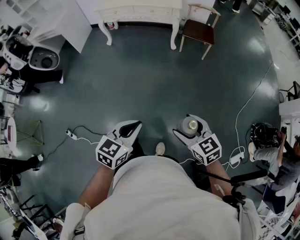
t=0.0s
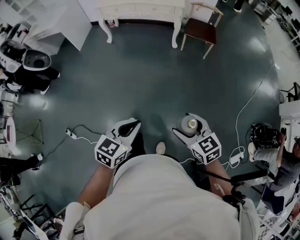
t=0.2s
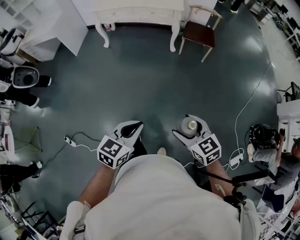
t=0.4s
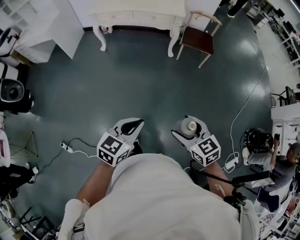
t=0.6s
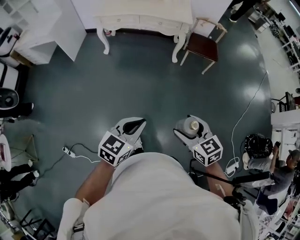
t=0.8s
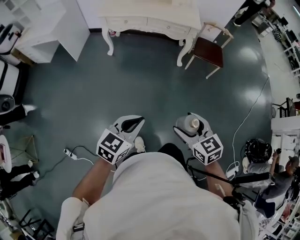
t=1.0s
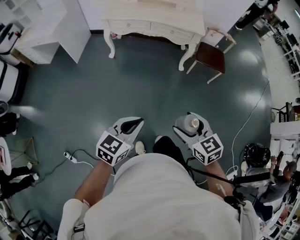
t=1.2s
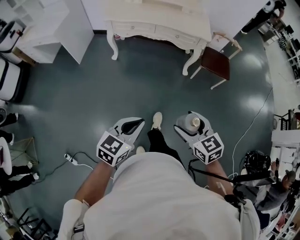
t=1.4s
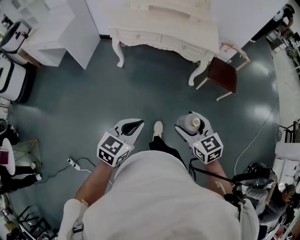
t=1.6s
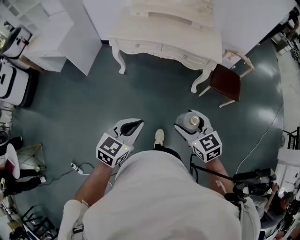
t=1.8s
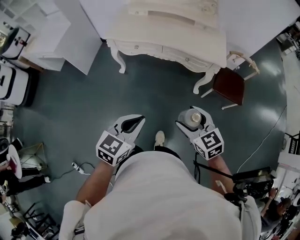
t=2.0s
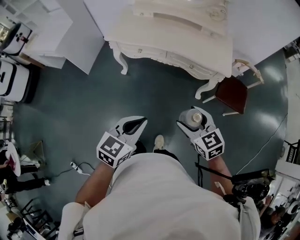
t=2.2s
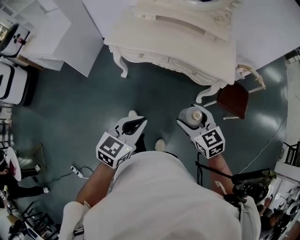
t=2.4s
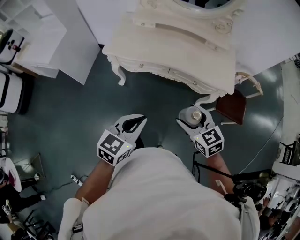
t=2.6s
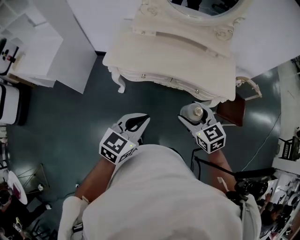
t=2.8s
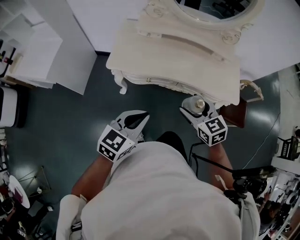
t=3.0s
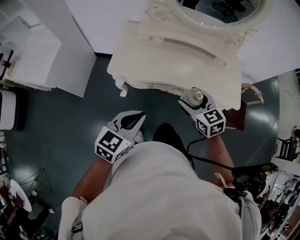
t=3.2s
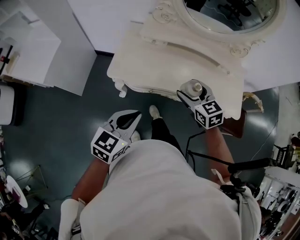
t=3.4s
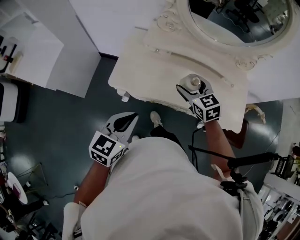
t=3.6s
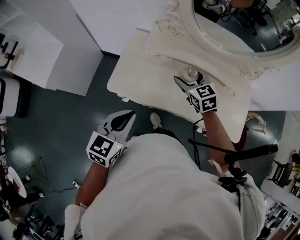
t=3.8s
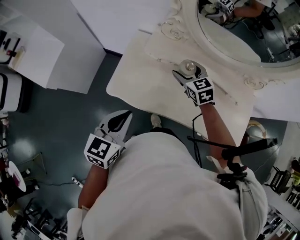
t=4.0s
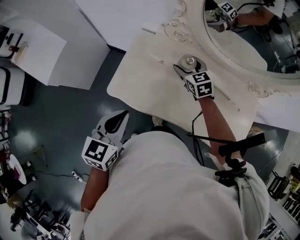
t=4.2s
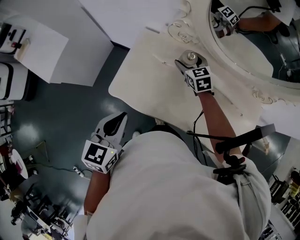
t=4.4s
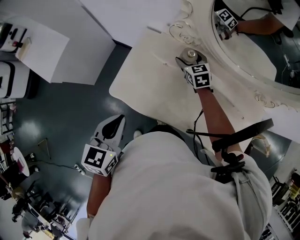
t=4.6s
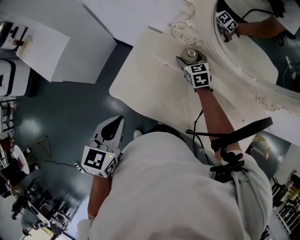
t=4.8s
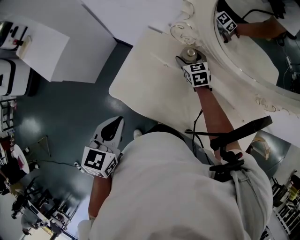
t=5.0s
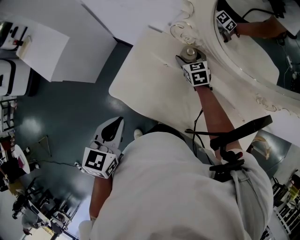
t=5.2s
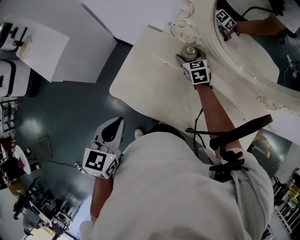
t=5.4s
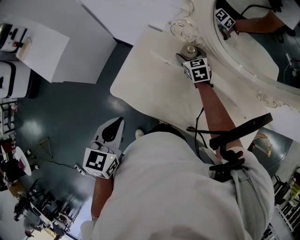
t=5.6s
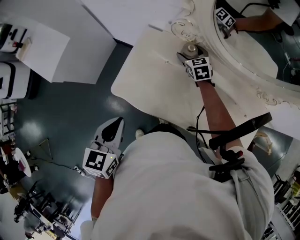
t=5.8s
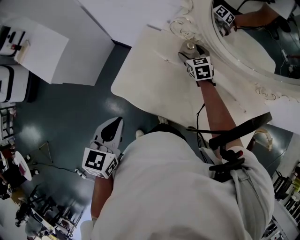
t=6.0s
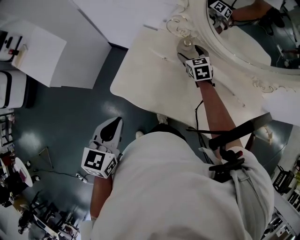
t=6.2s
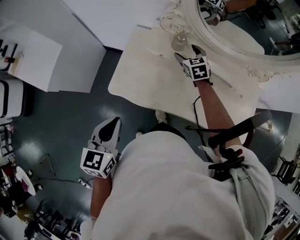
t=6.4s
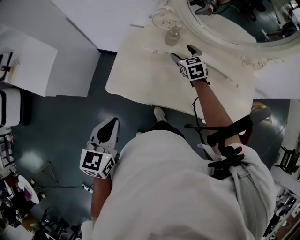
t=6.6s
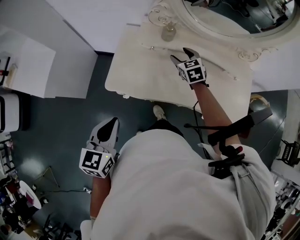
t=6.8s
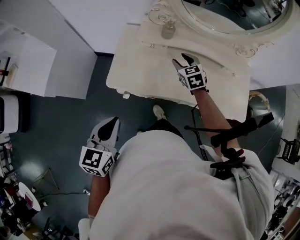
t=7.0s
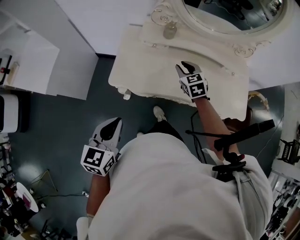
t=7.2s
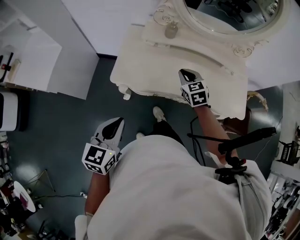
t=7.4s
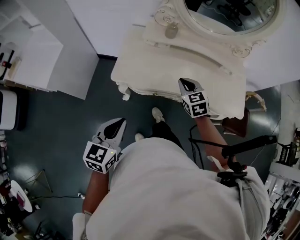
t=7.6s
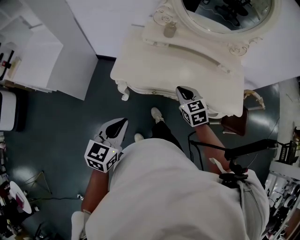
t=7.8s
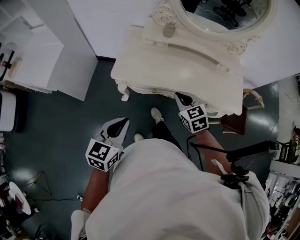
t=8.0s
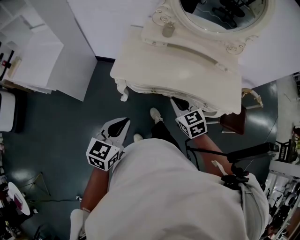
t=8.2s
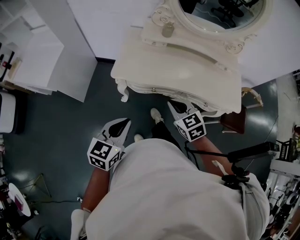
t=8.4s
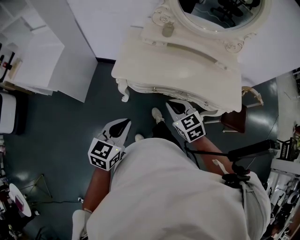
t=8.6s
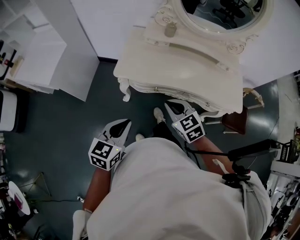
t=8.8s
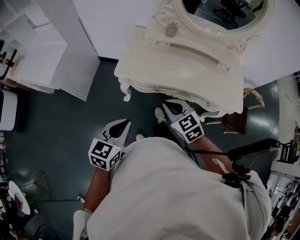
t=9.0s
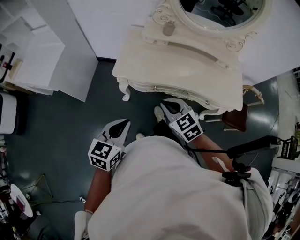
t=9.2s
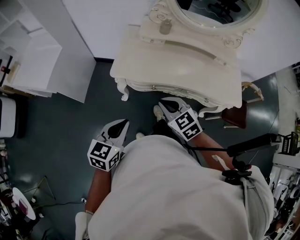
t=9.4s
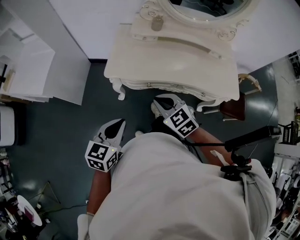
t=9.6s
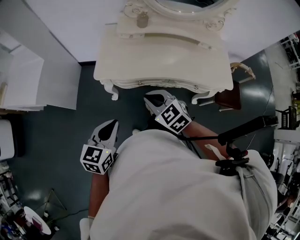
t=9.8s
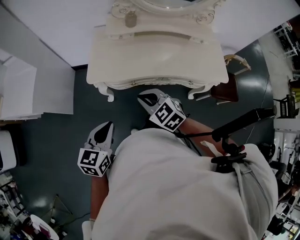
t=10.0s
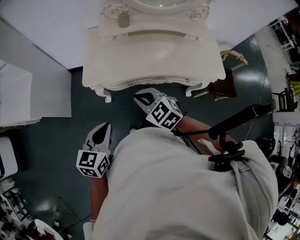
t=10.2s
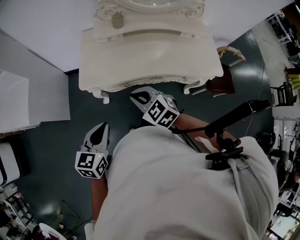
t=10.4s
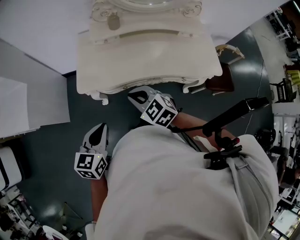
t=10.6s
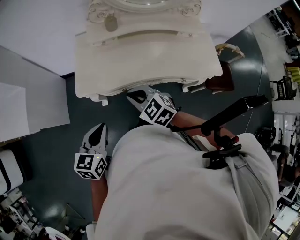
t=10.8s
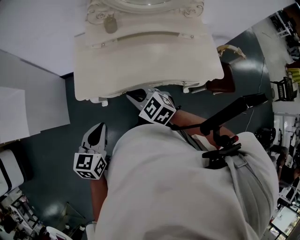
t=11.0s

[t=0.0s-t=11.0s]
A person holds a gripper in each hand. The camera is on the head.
t=0.0s to t=1.6s: Both grippers are carried forward and to the left, some 50 cm.
t=1.6s to t=3.2s: The two grippers travel together, forward, about 50 cm.
t=3.2s to t=4.8s: The right gripper heads forward, covering about 50 cm. Meanwhile the left gripper heads forward, covering approximately 30 cm, and rotates about 40 degrees.
t=4.8s to t=6.2s: The left gripper ends up approximately 5 cm from where it was.
t=6.2s to t=7.8s: The right gripper shifts roughly 40 cm backward, and closes up. The left gripper heads backward, covering approximately 20 cm, and turns by some 20 degrees.
t=7.8s to t=9.4s: The right gripper travels backward and to the left by roughly 15 cm.
t=9.4s to t=11.0s: Both grippers move forward, approximately 5 cm.

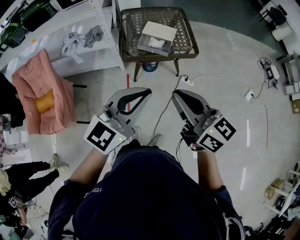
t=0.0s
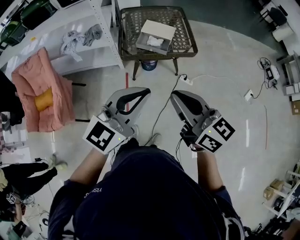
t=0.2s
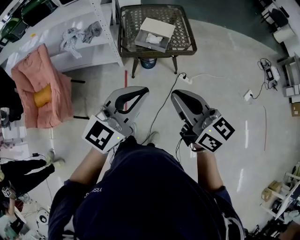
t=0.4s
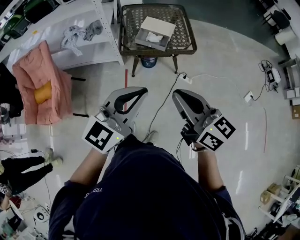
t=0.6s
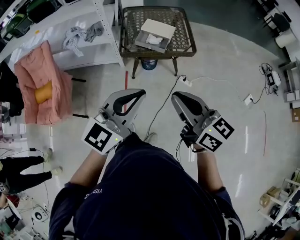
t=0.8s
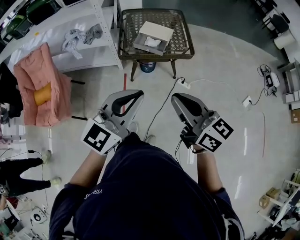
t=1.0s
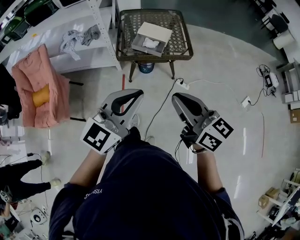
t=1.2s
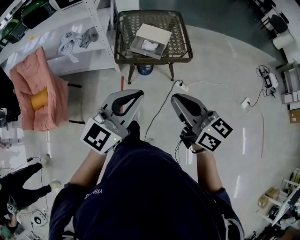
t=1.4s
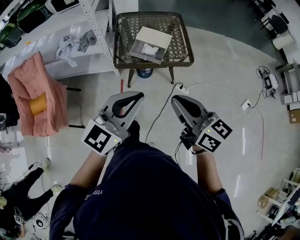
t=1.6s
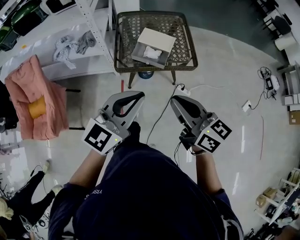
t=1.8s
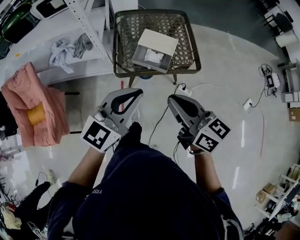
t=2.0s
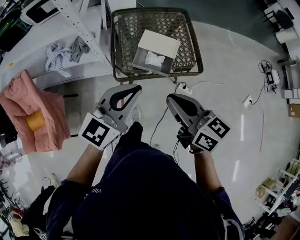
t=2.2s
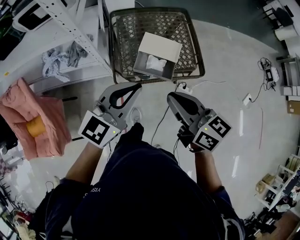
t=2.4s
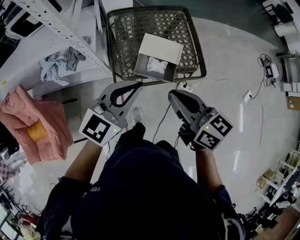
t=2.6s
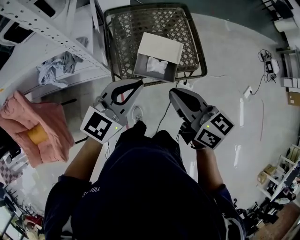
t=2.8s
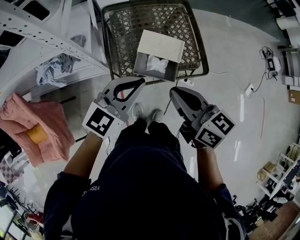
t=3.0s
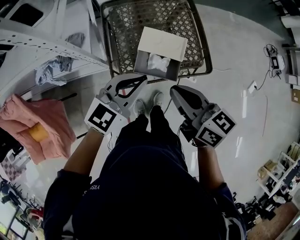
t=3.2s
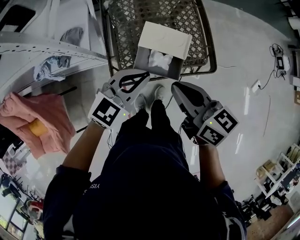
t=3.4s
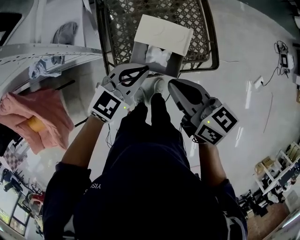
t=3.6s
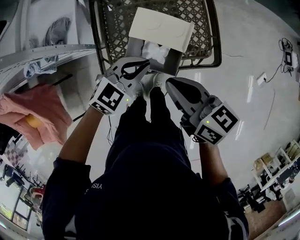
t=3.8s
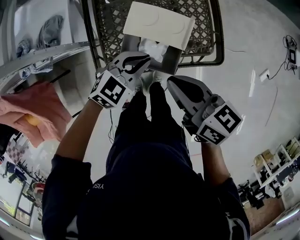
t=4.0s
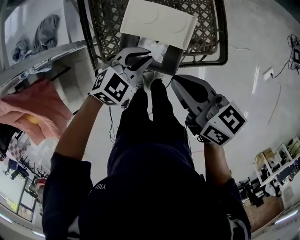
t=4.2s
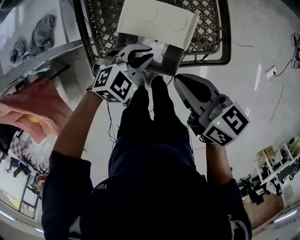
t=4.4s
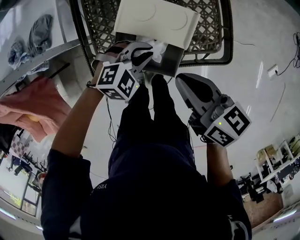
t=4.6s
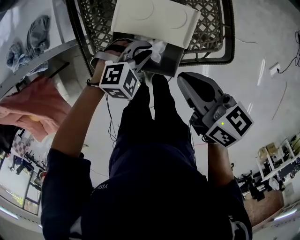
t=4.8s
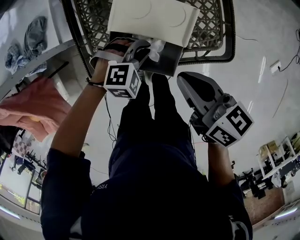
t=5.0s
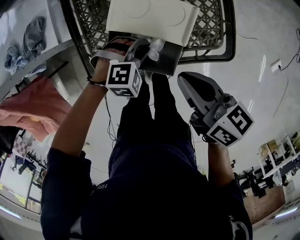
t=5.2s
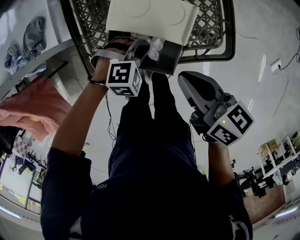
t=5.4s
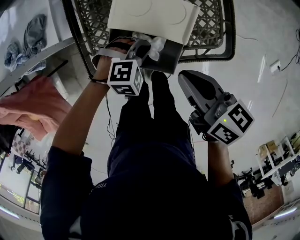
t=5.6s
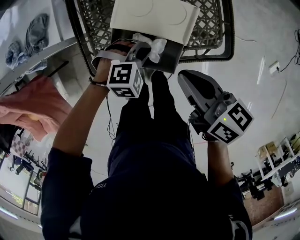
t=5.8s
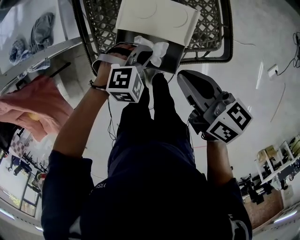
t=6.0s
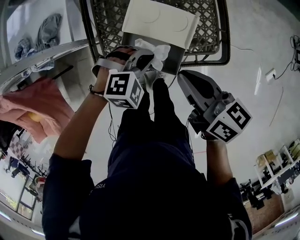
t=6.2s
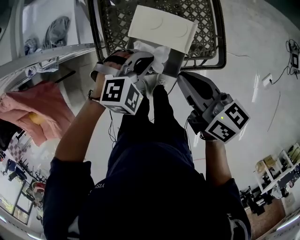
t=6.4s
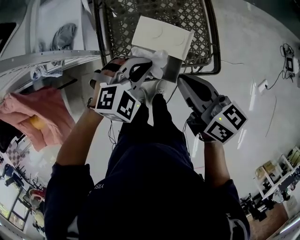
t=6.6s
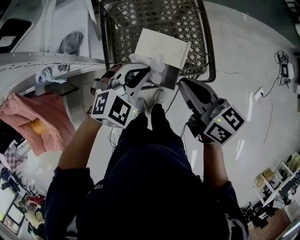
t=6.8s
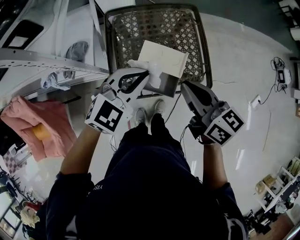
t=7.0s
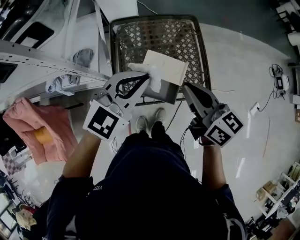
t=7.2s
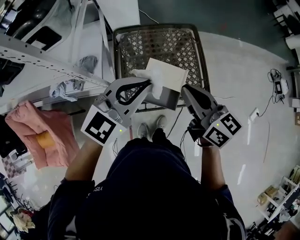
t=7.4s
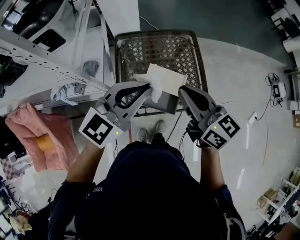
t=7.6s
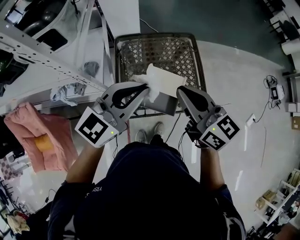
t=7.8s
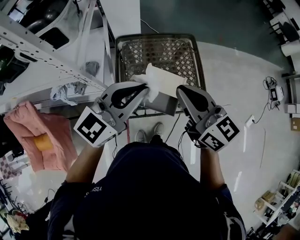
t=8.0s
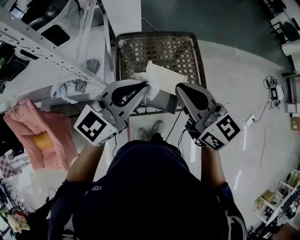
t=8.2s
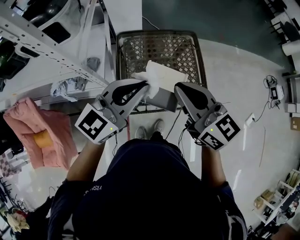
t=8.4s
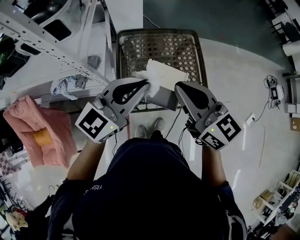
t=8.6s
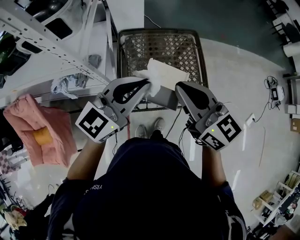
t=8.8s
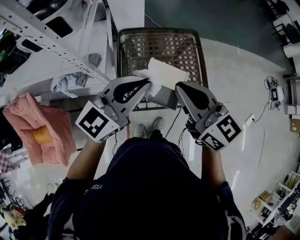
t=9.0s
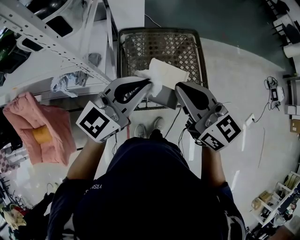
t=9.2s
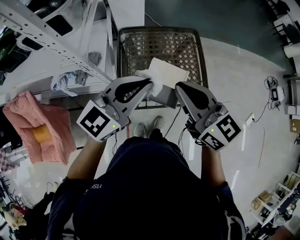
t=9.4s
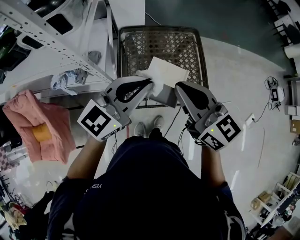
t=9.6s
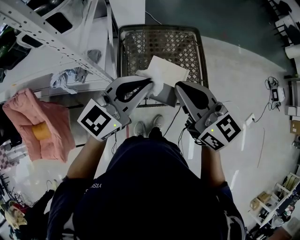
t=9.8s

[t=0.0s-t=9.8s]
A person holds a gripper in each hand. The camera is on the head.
t=0.0s to t=1.4s: The right gripper is displaced to the right by some 5 cm. The left gripper moves some 5 cm.
t=1.4s to t=2.8s: Both grippers travel together forward, about 35 cm.
t=2.8s to t=4.2s: Both grippers travel together downward and forward, approximately 25 cm. The left gripper points its fingers approximately 30 degrees further downward.
t=4.2s to t=5.6s: The left gripper travels downward by some 10 cm, and turns by approximately 30 degrees. The right gripper changes place by about 5 cm.
t=5.6s to t=7.0s: The left gripper goes approximately 35 cm upward, and tilts its fingers approximately 40 degrees upward. The right gripper heads upward, covering about 20 cm, and changes its angle by about 20 degrees.
t=7.0s to t=8.4s: The right gripper moves upward and to the left, approximately 15 cm, and swivels roughly 20 degrees; the left gripper travels upward by roughly 15 cm, and changes its angle by roughly 30 degrees.
t=8.4s to t=9.8s: The grippers stay close to where they were, moving slightly.

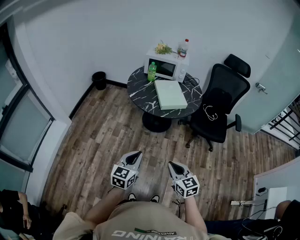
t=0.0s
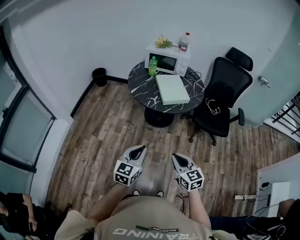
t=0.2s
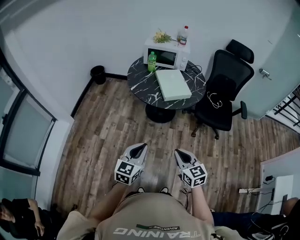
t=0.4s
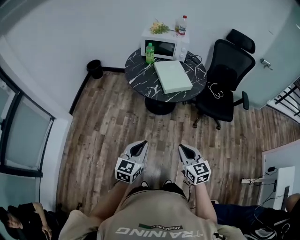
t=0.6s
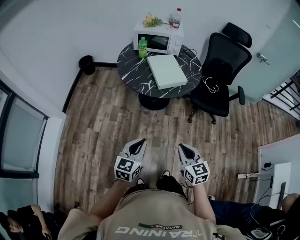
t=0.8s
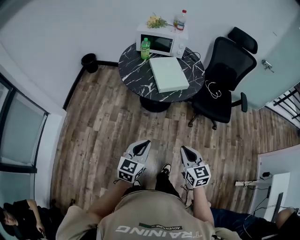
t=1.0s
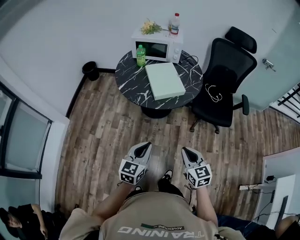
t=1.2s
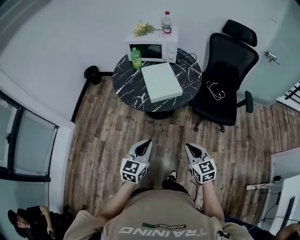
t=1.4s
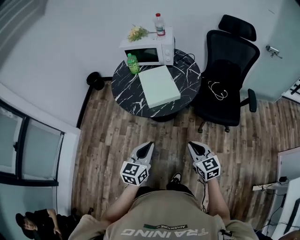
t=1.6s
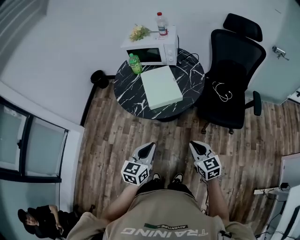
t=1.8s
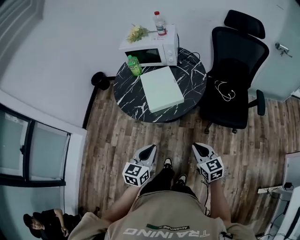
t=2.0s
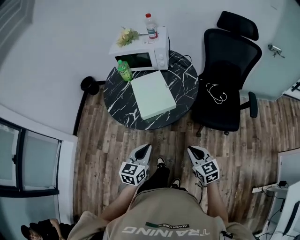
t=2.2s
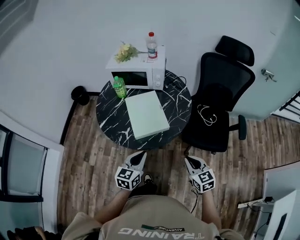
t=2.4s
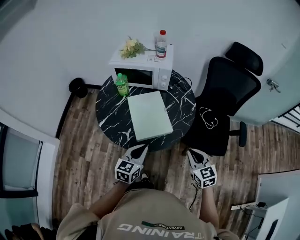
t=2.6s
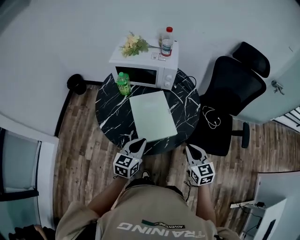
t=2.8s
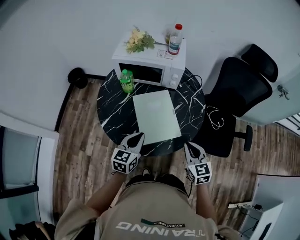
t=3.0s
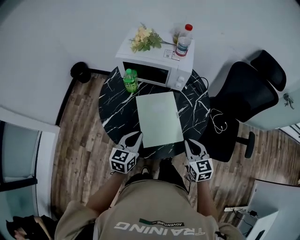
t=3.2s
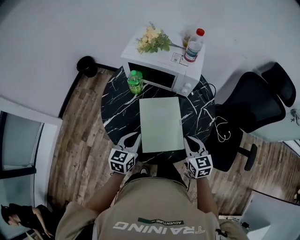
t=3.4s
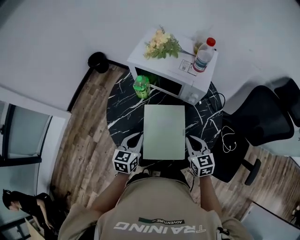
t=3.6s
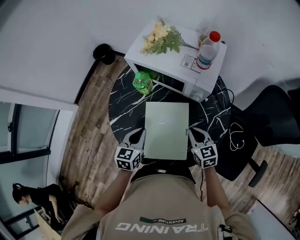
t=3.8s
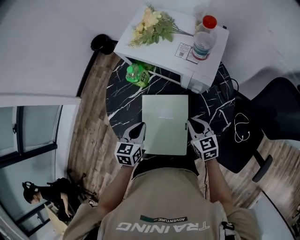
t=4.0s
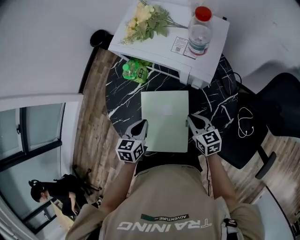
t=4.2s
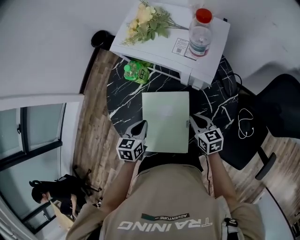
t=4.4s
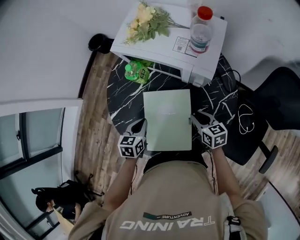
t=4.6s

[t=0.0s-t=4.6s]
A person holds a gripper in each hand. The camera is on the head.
t=0.0s to t=1.6s: Both grippers travel together forward and to the right, about 25 cm.
t=1.6s to t=3.0s: The two grippers go about 35 cm forward.
t=3.0s to t=4.6s: The left gripper ends up roughly 20 cm from where it was, and swivels some 30 degrees. Meanwhile the right gripper ends up approximately 30 cm from where it was, and turns by about 40 degrees.
